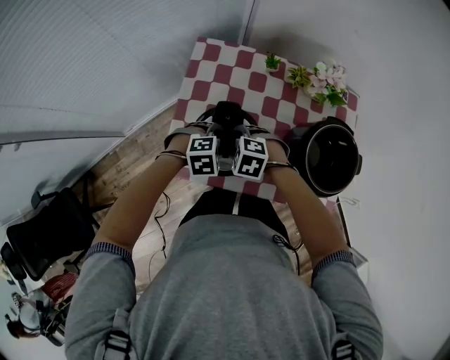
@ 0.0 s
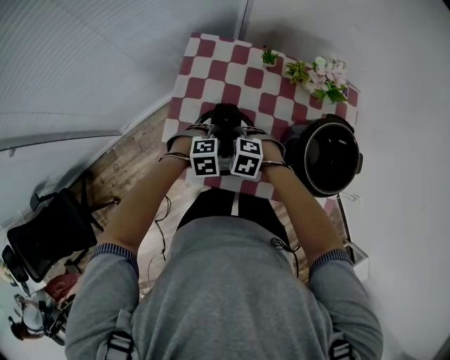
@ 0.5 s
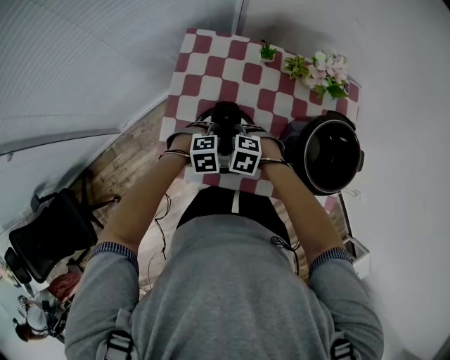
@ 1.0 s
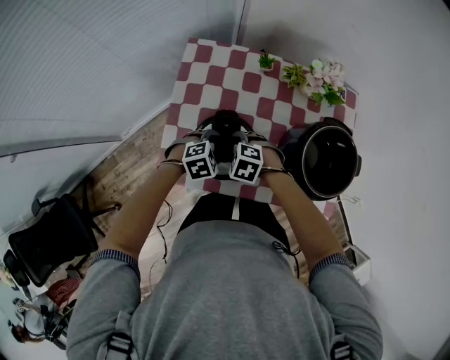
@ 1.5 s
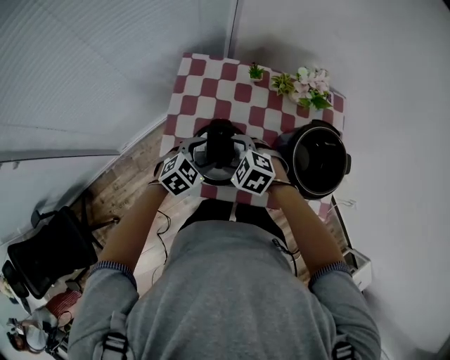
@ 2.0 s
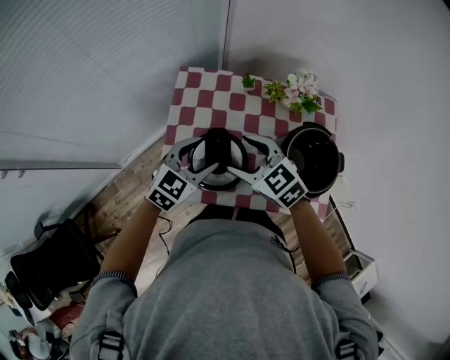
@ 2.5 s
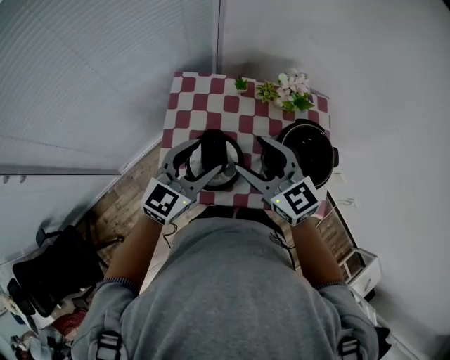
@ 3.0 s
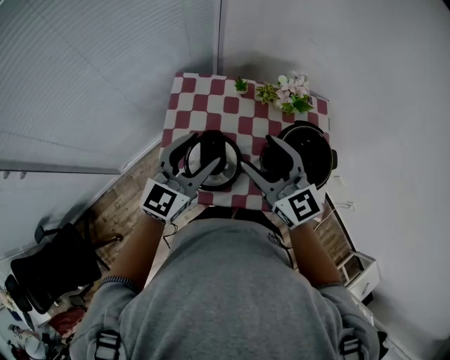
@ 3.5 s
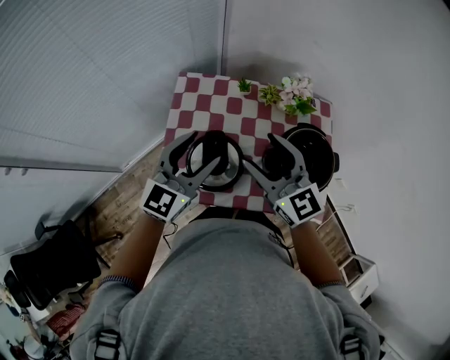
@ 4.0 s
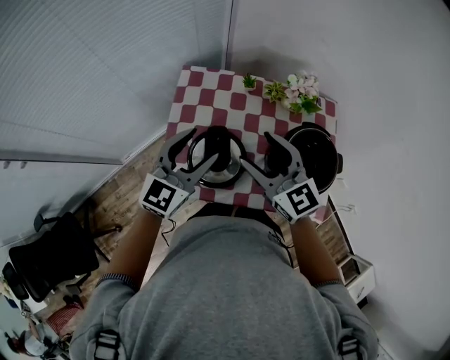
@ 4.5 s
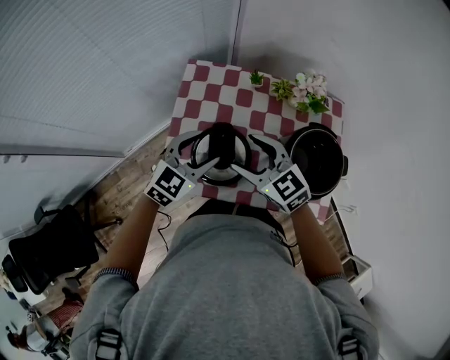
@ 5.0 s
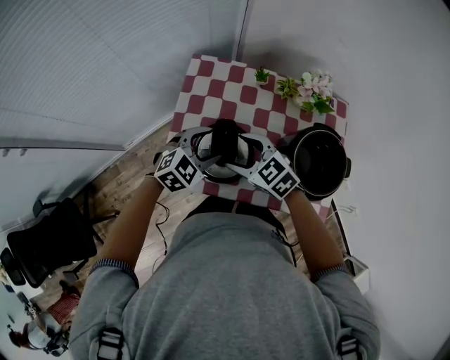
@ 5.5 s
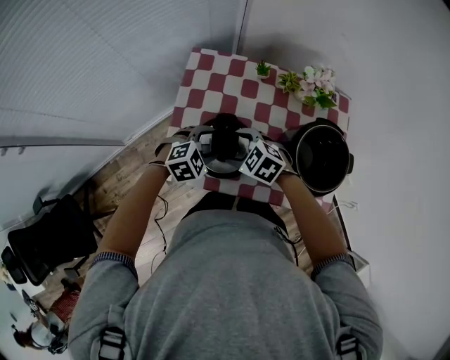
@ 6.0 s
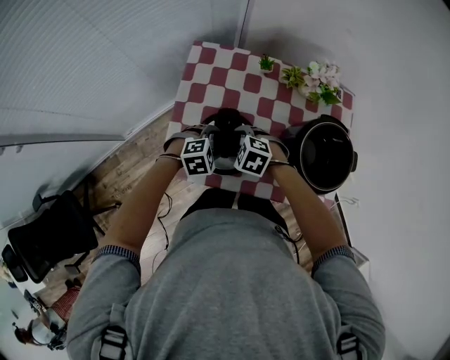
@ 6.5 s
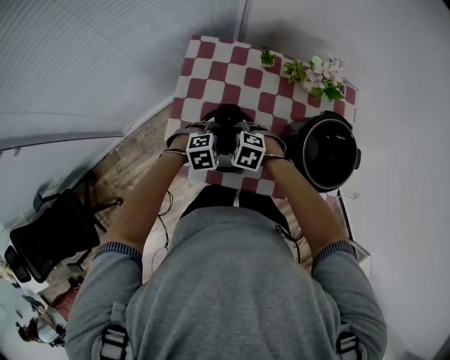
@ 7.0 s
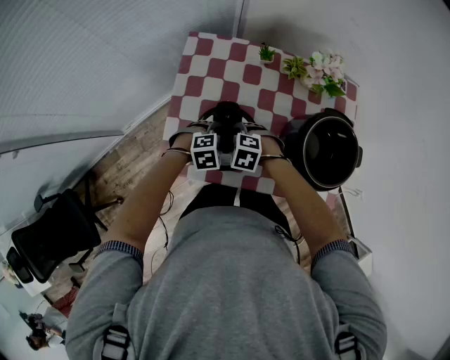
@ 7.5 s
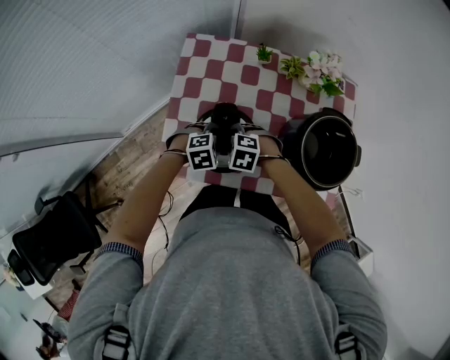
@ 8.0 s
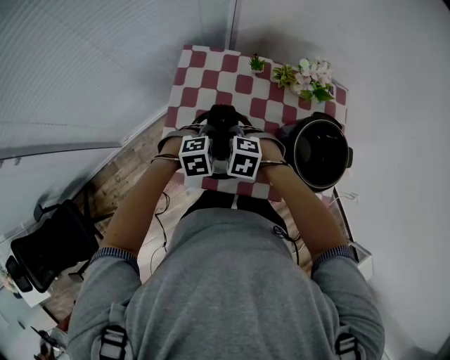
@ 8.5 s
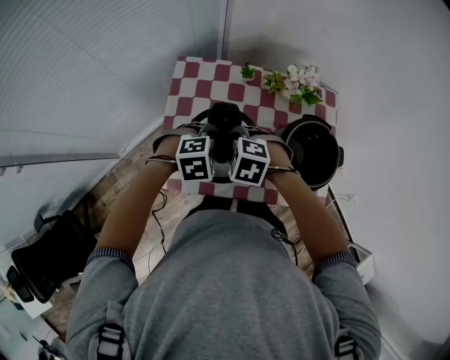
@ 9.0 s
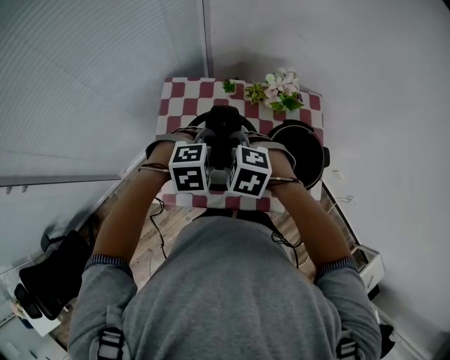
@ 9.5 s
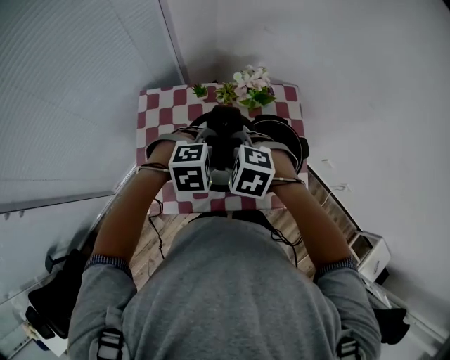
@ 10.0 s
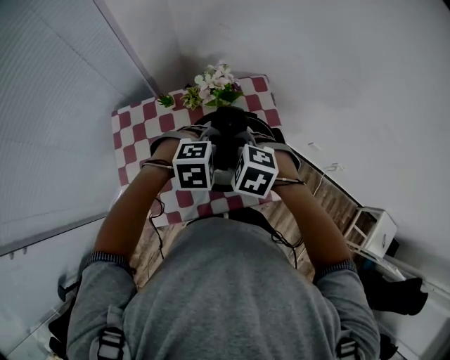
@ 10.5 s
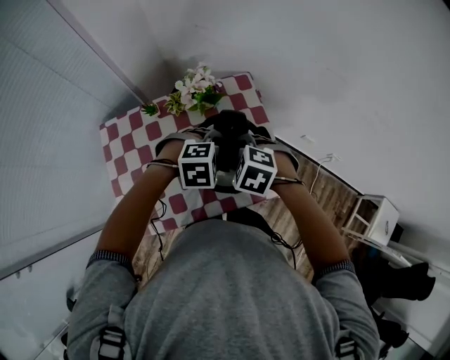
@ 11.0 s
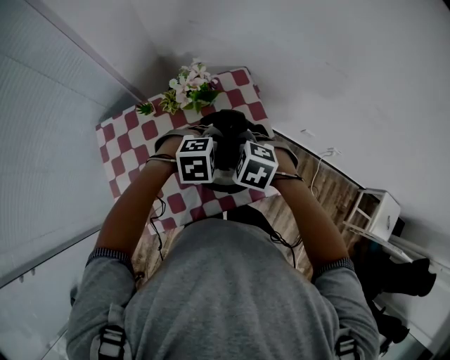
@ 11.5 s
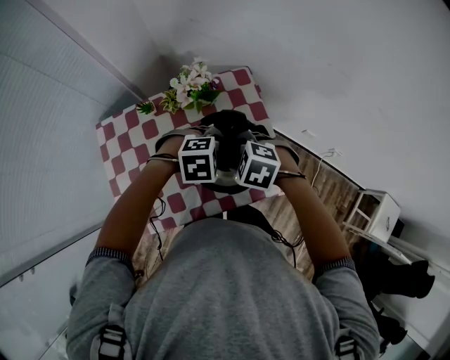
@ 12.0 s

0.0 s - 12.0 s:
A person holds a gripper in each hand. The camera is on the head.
0.0 s - 2.0 s: The left gripper rotates roughly 30 degrees, while the right gripper shifts about 5 cm upward.
2.0 s - 4.0 s: The two grippers go about 25 cm upward. The right gripper tilts its fingers about 50 degrees upward; the left gripper tips its fingers upward by about 40 degrees.
4.0 s - 6.0 s: The two grippers go about 25 cm downward. The right gripper points its fingers about 50 degrees further downward; the left gripper tips its fingers downward by roughly 50 degrees.
6.0 s - 8.0 s: Both grippers travel together downward, approximately 10 cm. The right gripper rotates roughly 20 degrees.
8.0 s - 10.0 s: The grippers both shift upward by approximately 25 cm. The left gripper changes its angle by about 20 degrees. Meanwhile the right gripper rotates some 20 degrees.
10.0 s - 12.0 s: The right gripper shifts by some 15 cm, while the left gripper moves approximately 15 cm, and rotates about 20 degrees.

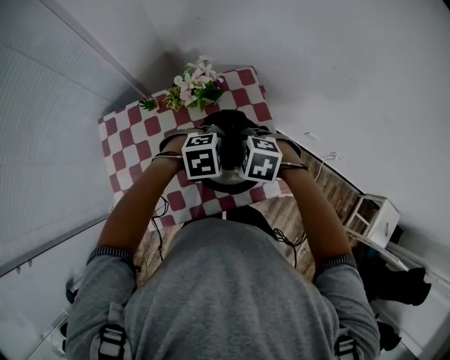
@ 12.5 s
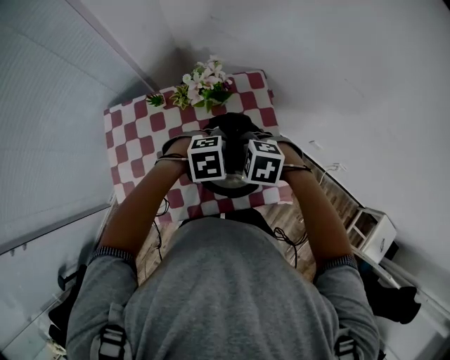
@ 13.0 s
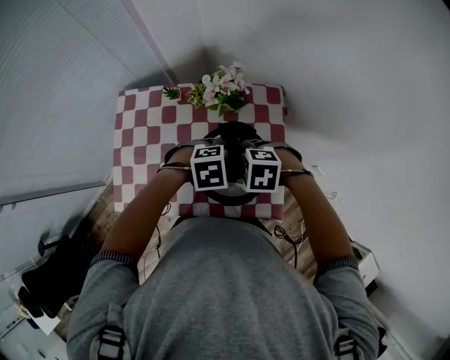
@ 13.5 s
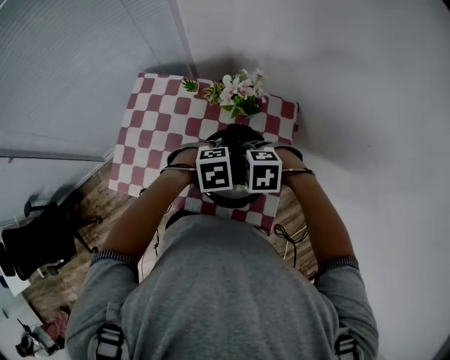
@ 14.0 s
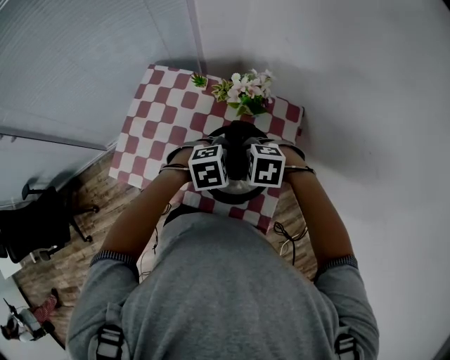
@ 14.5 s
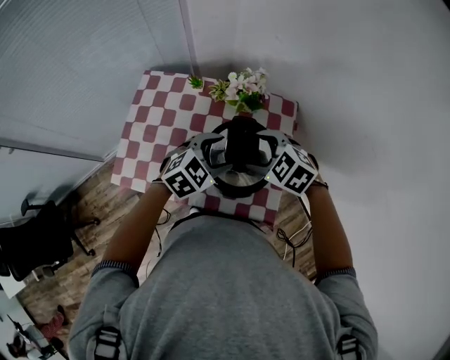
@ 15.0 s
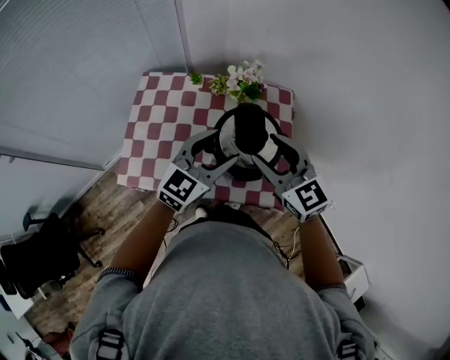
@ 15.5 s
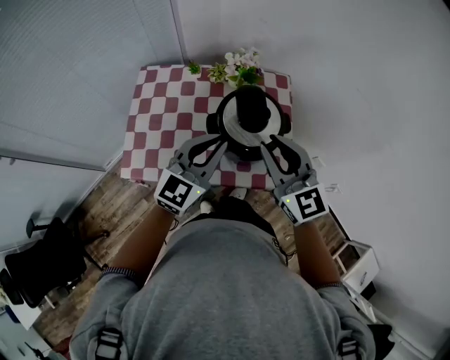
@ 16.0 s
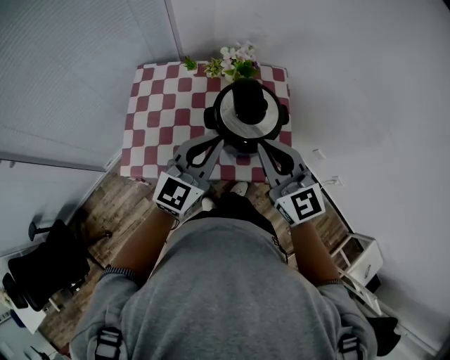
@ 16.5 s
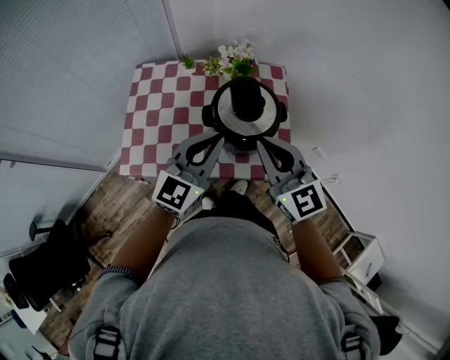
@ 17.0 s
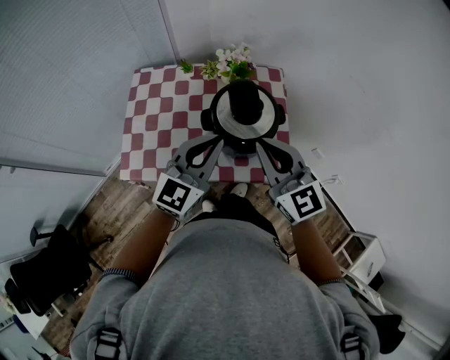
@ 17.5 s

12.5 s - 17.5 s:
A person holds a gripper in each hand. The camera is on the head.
12.5 s - 15.0 s: Both grippers travel together upward, about 5 cm. The right gripper rotates roughly 20 degrees. Meanwhile the left gripper rotates approximately 60 degrees.
15.0 s - 17.5 s: The left gripper goes roughly 20 cm backward, upward and to the left, tilts its fingers about 40 degrees upward, and closes its fingers; the right gripper travels backward and upward by about 20 cm, tips its fingers upward by about 50 degrees, and closes its fingers.

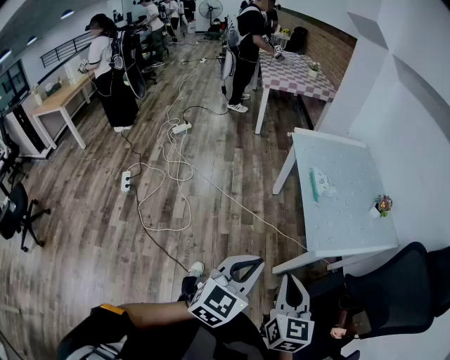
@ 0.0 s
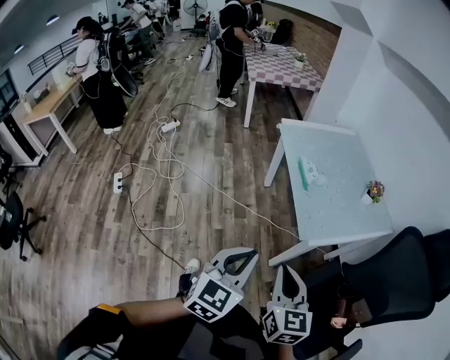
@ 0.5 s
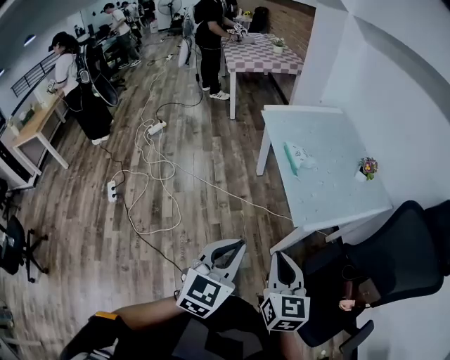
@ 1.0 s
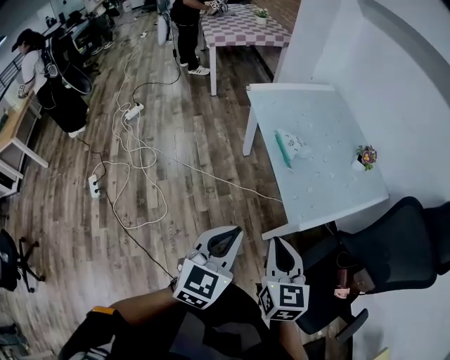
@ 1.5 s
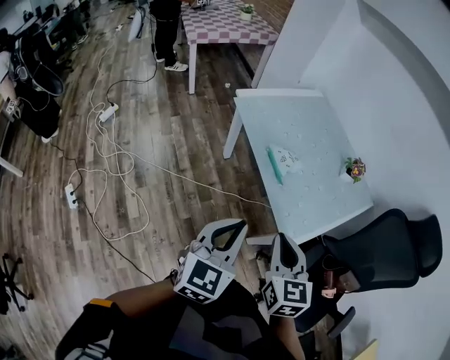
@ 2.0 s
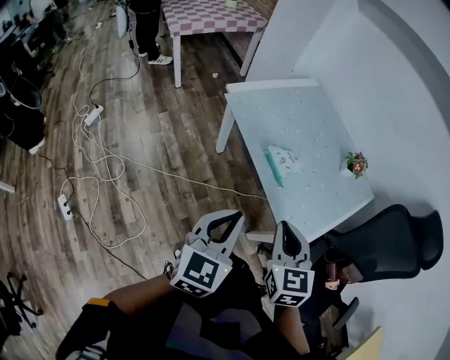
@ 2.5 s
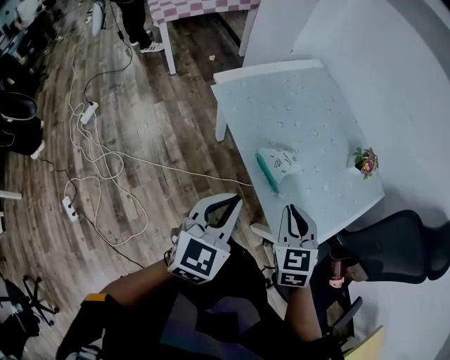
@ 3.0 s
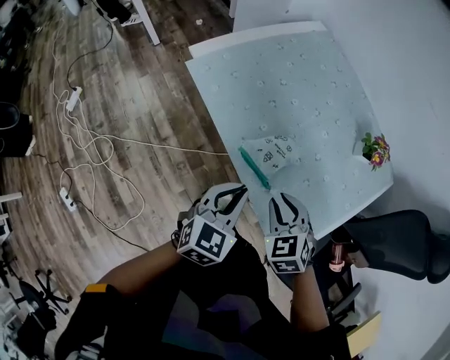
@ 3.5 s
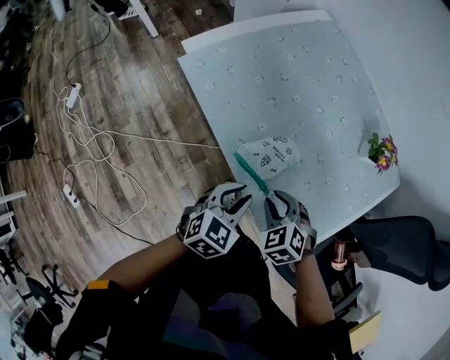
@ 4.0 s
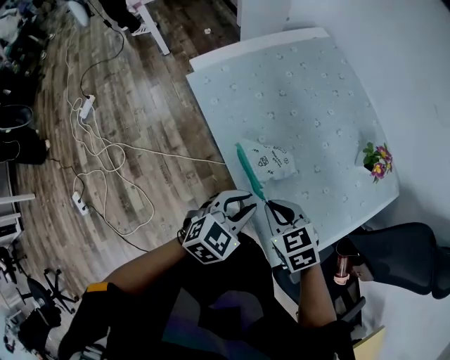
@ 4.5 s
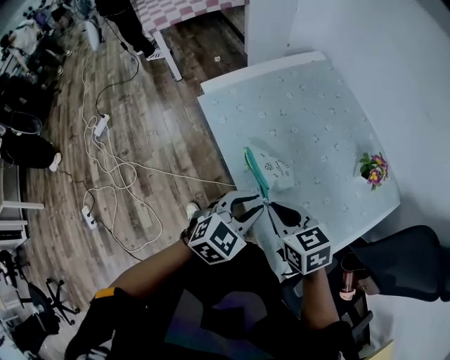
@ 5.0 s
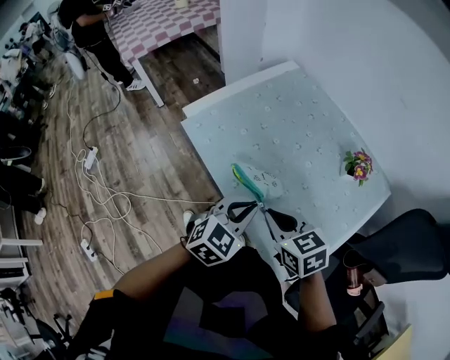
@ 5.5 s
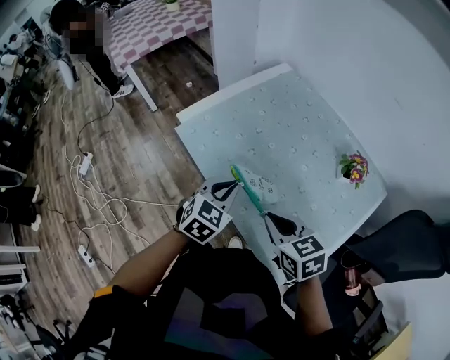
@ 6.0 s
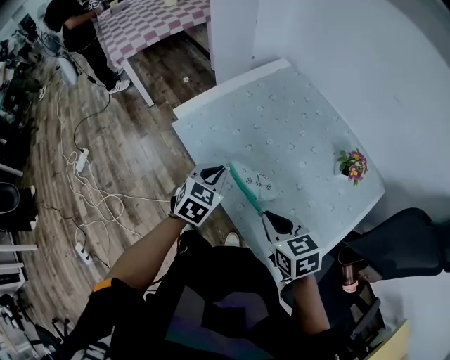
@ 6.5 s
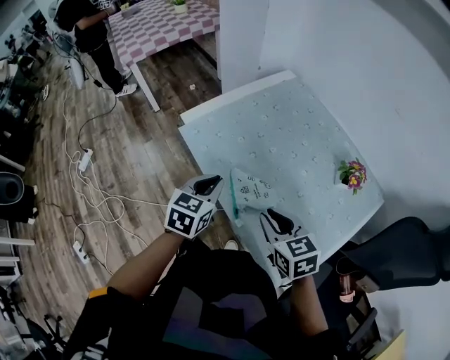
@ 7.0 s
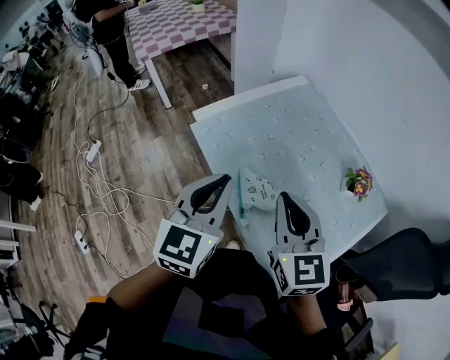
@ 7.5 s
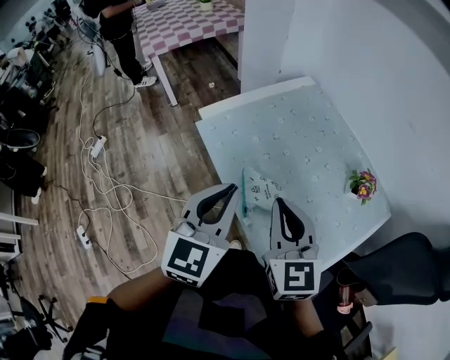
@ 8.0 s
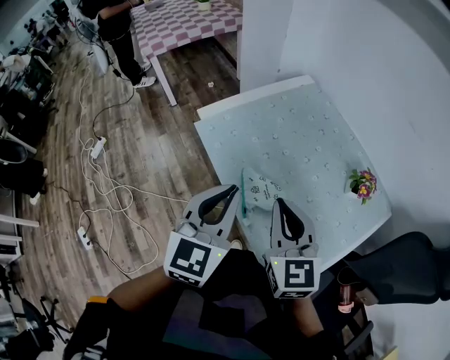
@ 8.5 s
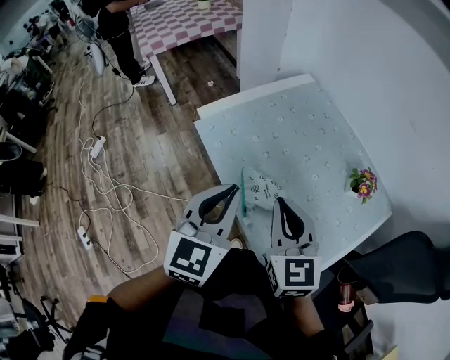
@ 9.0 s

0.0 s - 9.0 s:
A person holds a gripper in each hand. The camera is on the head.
0.0 s - 2.0 s: The two grippers go roughly 20 cm forward.
2.0 s - 4.5 s: The two grippers go roughly 30 cm forward and downward. The right gripper changes its angle by some 40 degrees, and opens and closes again; the left gripper swivels about 30 degrees.
4.5 s - 7.0 s: The right gripper heads upward, covering some 10 cm, and swivels approximately 20 degrees. The left gripper heads forward, to the left and upward, covering approximately 15 cm, and rotates about 20 degrees.
7.0 s - 9.0 s: The right gripper travels upward by approximately 10 cm, and turns by about 30 degrees; the left gripper goes about 15 cm upward and backward, and rotates some 20 degrees.
